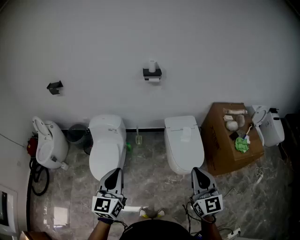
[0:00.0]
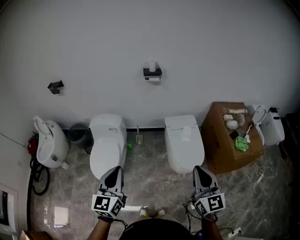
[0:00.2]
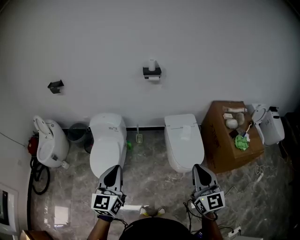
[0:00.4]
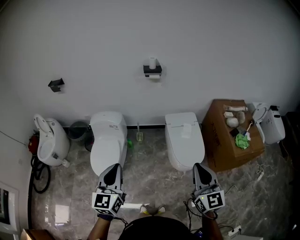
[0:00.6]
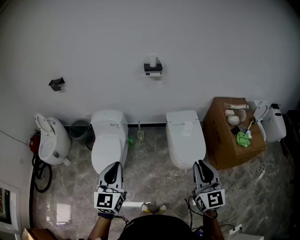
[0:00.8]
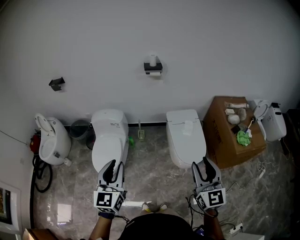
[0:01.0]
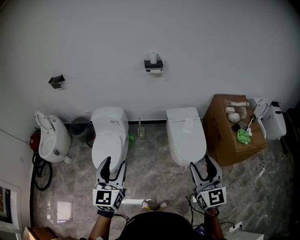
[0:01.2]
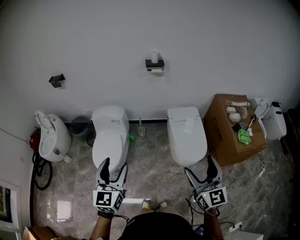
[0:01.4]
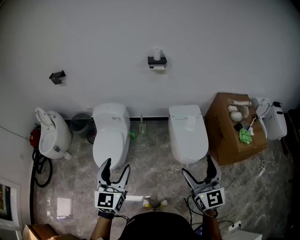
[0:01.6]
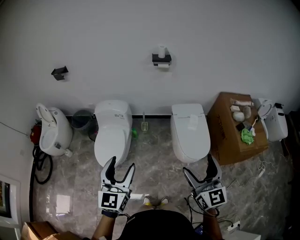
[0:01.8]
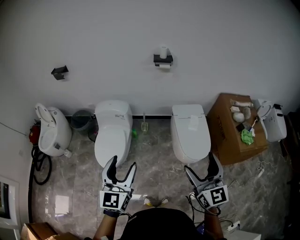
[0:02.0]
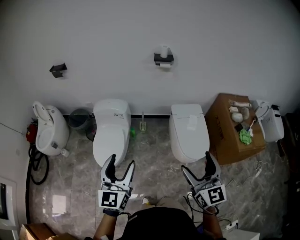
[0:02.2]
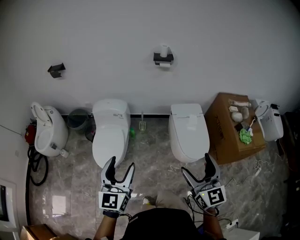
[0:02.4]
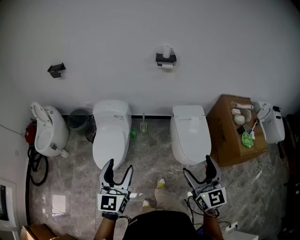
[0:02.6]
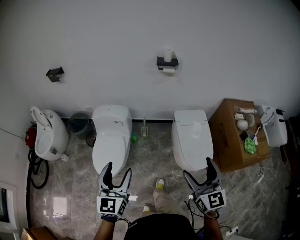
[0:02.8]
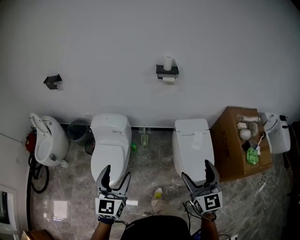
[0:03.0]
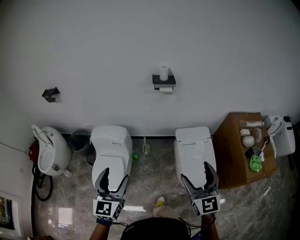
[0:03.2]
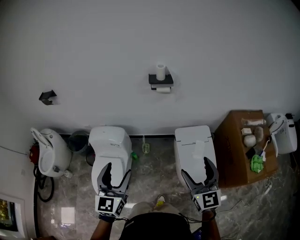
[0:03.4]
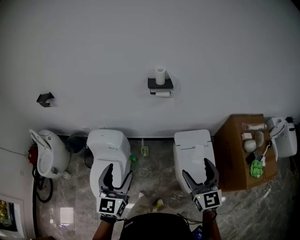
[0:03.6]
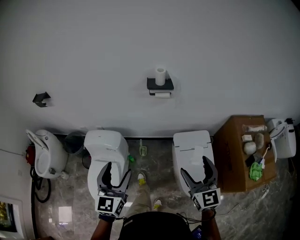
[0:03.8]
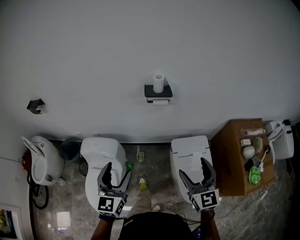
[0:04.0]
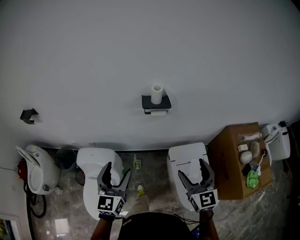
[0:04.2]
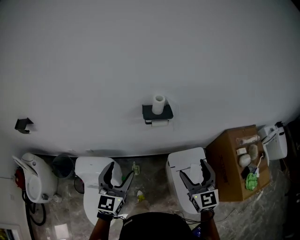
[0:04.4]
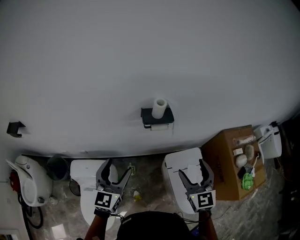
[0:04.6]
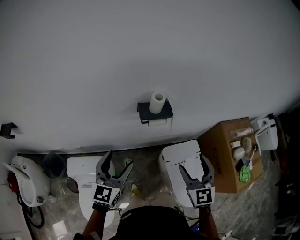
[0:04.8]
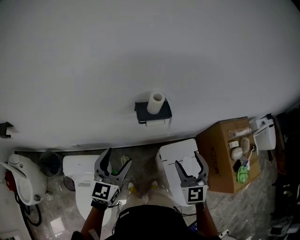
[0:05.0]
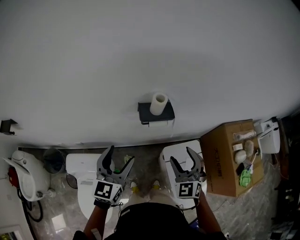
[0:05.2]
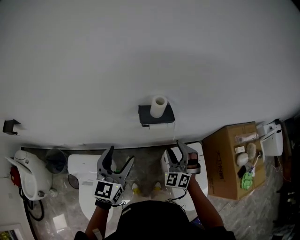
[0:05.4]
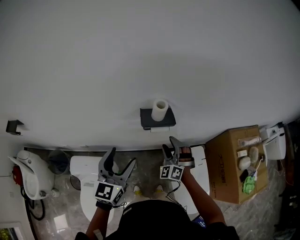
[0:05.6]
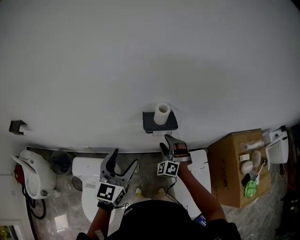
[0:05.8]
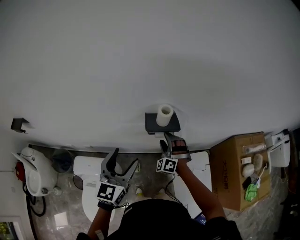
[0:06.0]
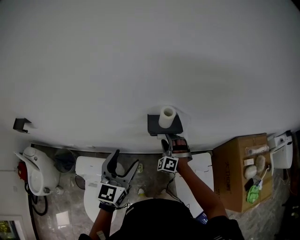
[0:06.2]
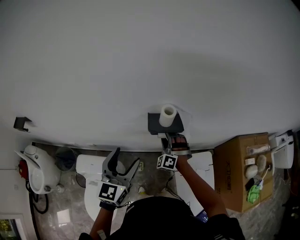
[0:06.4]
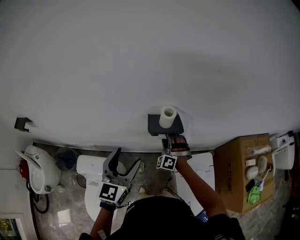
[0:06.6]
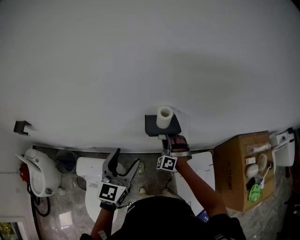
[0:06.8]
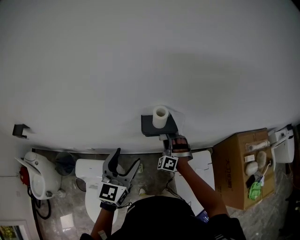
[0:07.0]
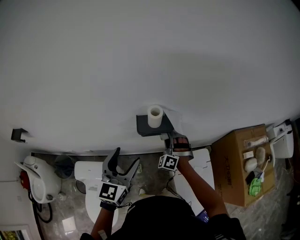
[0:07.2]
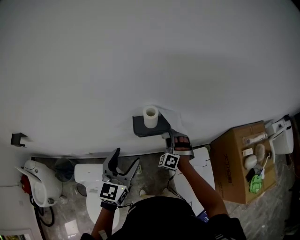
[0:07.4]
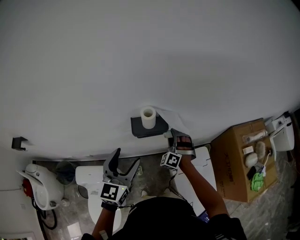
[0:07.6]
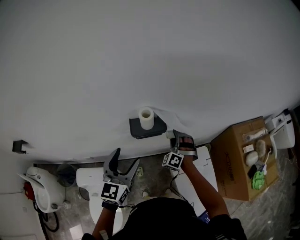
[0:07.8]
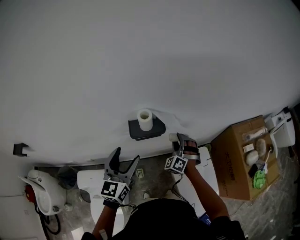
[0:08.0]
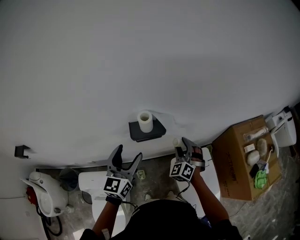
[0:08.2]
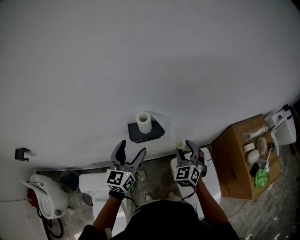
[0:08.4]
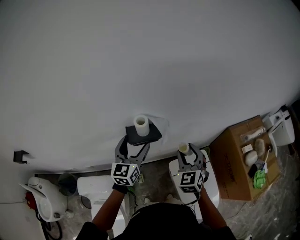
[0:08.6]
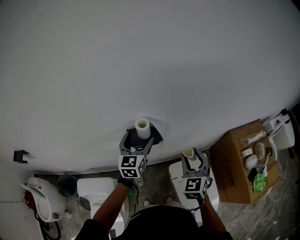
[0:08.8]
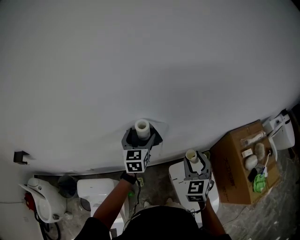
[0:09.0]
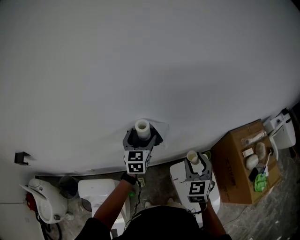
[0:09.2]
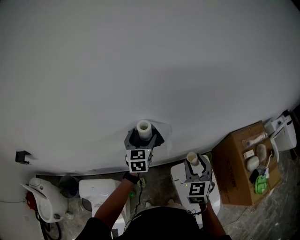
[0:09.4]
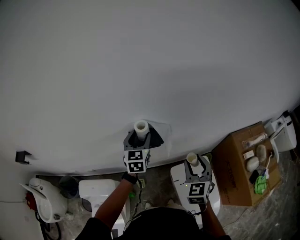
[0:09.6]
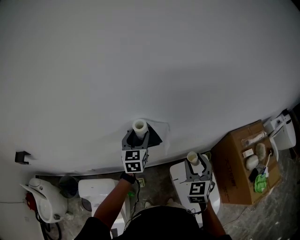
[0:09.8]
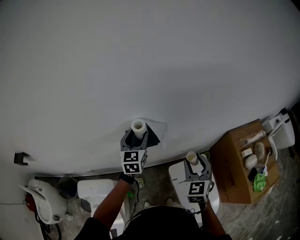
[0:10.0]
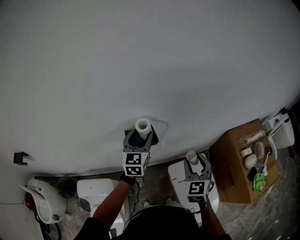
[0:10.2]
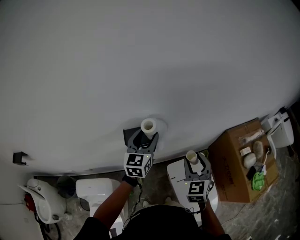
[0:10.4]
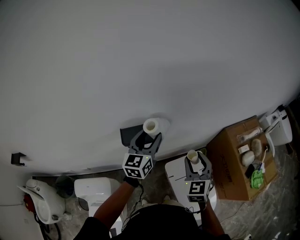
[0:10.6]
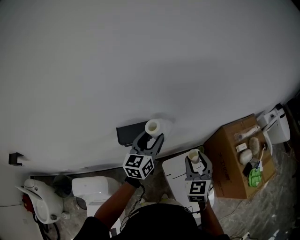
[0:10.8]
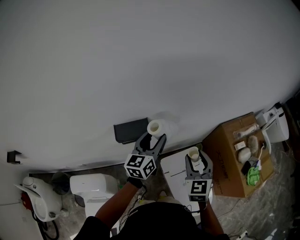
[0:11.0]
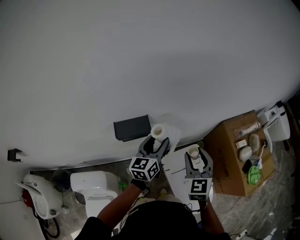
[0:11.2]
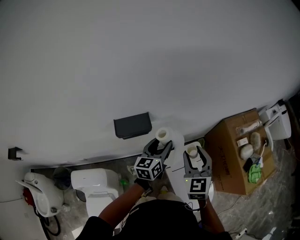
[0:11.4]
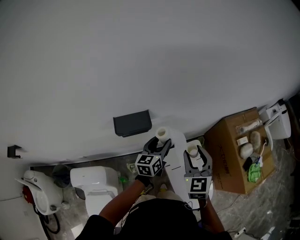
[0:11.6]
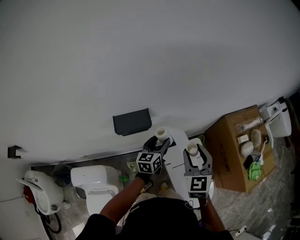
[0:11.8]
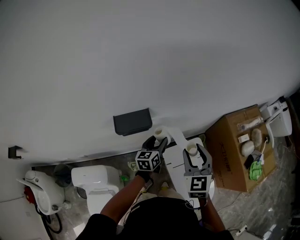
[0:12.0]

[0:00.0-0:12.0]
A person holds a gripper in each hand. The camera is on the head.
0:00.0 to 0:01.6: The left gripper opens its fingers, while the right gripper opens up.
0:01.6 to 0:03.0: The grippers both shift forward by about 15 cm.
0:03.0 to 0:04.4: Both grippers travel together forward, approximately 40 cm.
0:04.4 to 0:06.0: The left gripper heads forward, covering approximately 15 cm. The right gripper moves forward, downward and to the left, some 35 cm, and rotates around the line of its fingers by about 60 degrees, counterclockwise from behind.
0:06.0 to 0:07.6: The right gripper heads to the right, covering roughly 10 cm. The left gripper travels to the right by some 5 cm.
0:07.6 to 0:09.0: The left gripper goes about 15 cm forward; the right gripper goes about 20 cm upward, to the right and backward, and twists about 50 degrees clockwise, seen from behind.
0:09.0 to 0:10.4: The left gripper shifts about 5 cm to the right, and closes up.
0:10.4 to 0:12.0: The left gripper shifts roughly 20 cm downward and to the right, and rotates approximately 30 degrees.

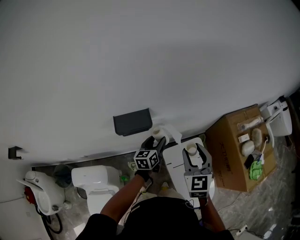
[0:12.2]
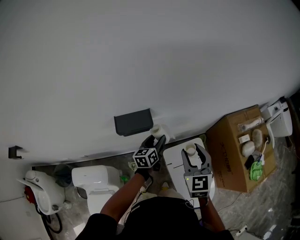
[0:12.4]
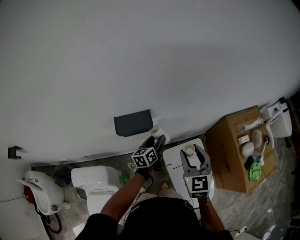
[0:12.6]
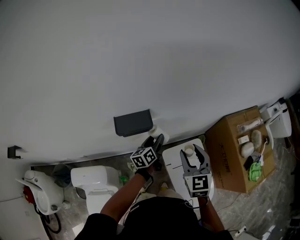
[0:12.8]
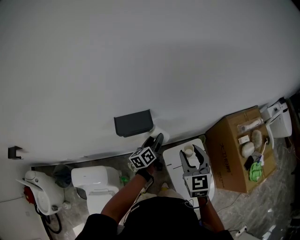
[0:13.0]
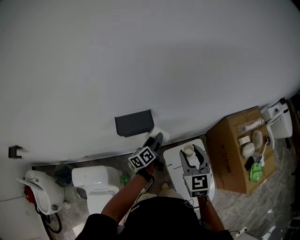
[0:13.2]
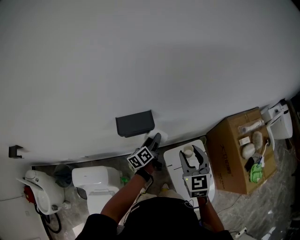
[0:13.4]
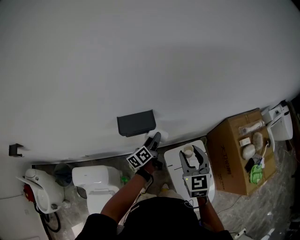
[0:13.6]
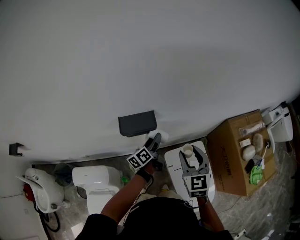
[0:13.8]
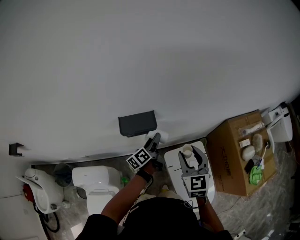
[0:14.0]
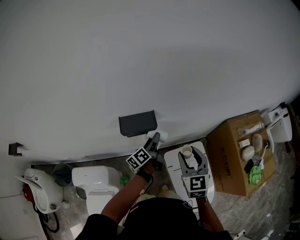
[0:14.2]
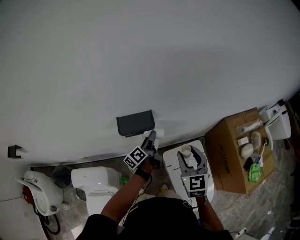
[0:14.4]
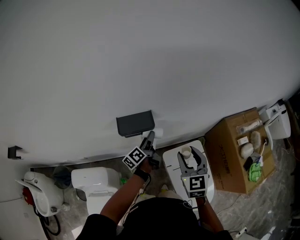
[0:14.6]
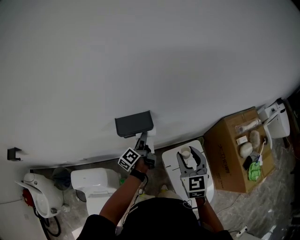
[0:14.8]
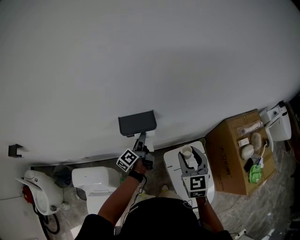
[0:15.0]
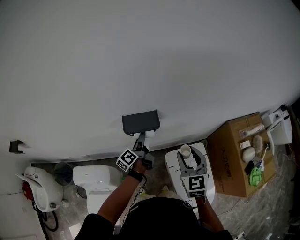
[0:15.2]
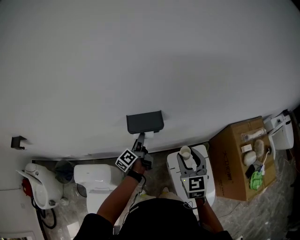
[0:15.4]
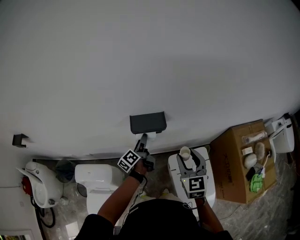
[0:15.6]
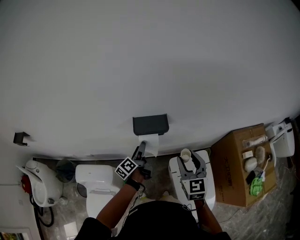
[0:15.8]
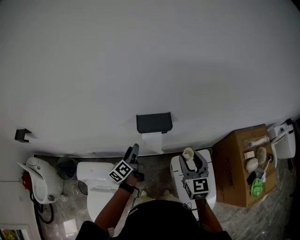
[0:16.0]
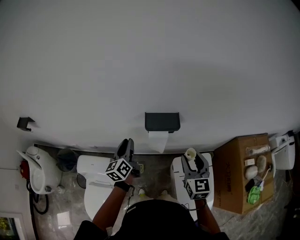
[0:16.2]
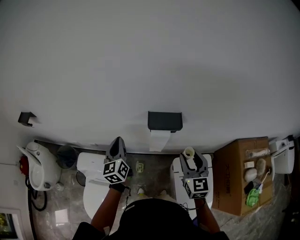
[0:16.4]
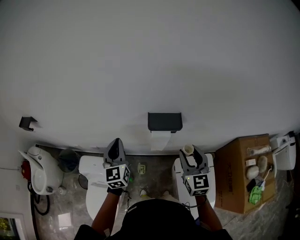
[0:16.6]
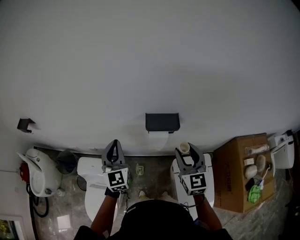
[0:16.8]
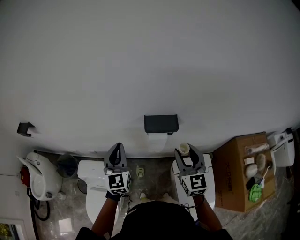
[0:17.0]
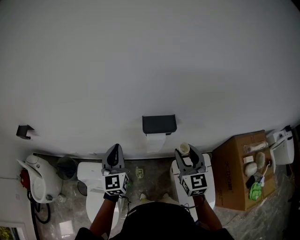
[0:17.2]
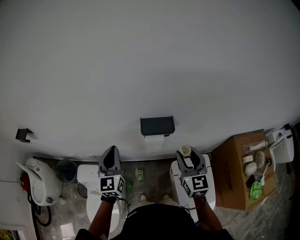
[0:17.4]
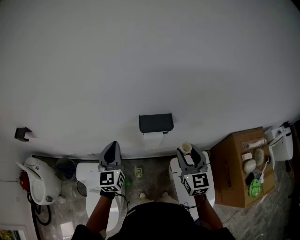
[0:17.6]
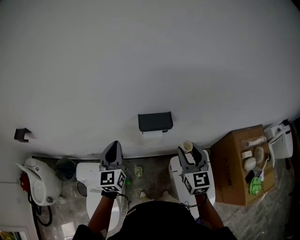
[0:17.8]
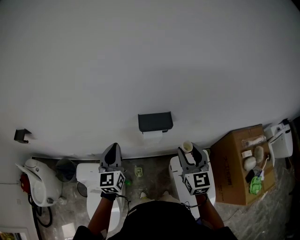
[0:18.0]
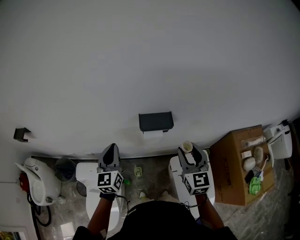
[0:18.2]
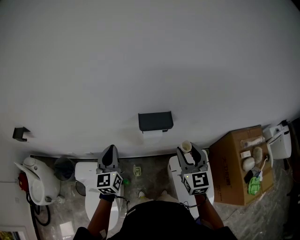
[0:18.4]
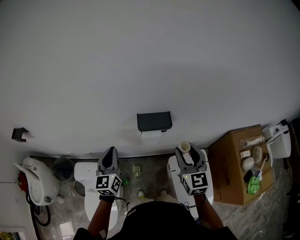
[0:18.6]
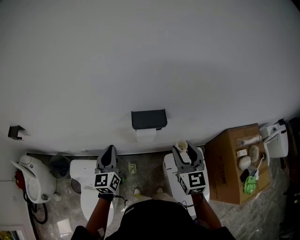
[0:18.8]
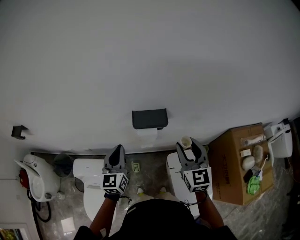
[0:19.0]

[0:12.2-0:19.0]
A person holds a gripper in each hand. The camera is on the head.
0:12.2 to 0:13.6: The left gripper rotates approximately 30 degrees.
0:13.6 to 0:15.0: The left gripper heads to the left, covering about 5 cm.
0:15.0 to 0:16.2: The right gripper shifts roughly 5 cm to the left. Meanwhile the left gripper travels to the left, backward and upward by about 20 cm, and swivels approximately 40 degrees.
0:16.2 to 0:17.6: The left gripper heads upward, covering some 10 cm, and swivels approximately 40 degrees. Meanwhile the right gripper changes place by roughly 5 cm.
0:17.6 to 0:19.0: The left gripper travels to the right by roughly 5 cm.

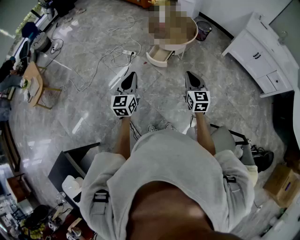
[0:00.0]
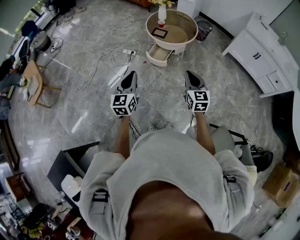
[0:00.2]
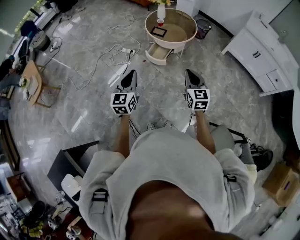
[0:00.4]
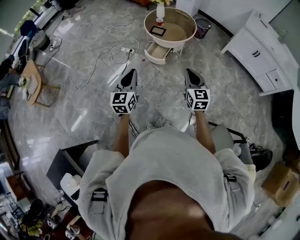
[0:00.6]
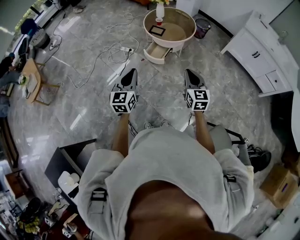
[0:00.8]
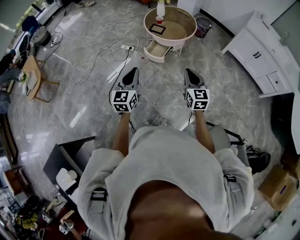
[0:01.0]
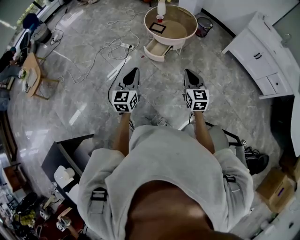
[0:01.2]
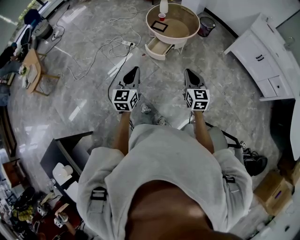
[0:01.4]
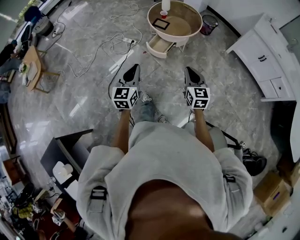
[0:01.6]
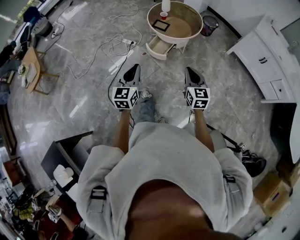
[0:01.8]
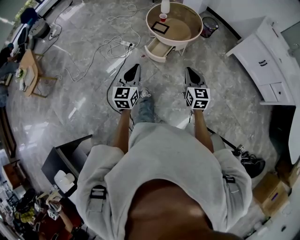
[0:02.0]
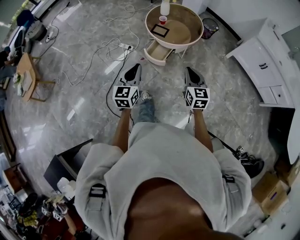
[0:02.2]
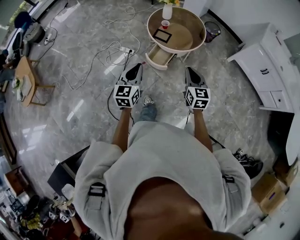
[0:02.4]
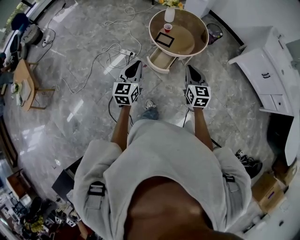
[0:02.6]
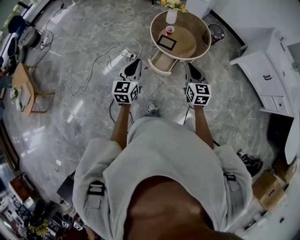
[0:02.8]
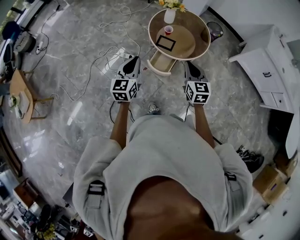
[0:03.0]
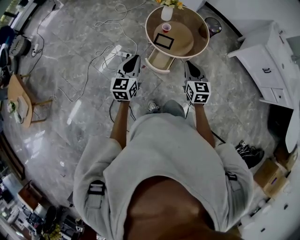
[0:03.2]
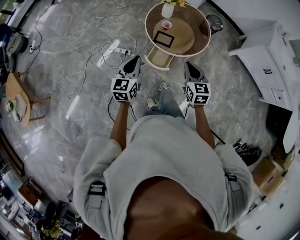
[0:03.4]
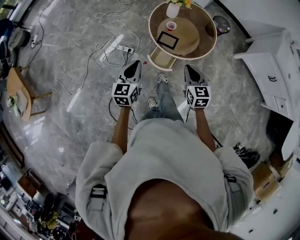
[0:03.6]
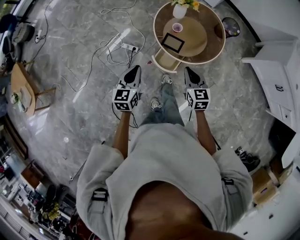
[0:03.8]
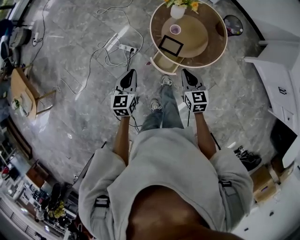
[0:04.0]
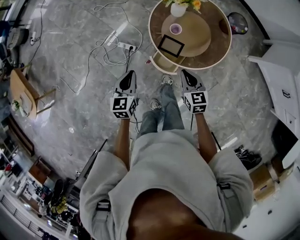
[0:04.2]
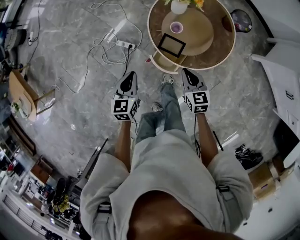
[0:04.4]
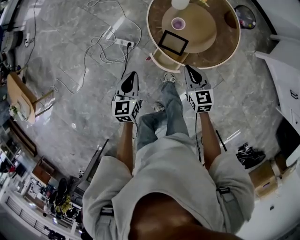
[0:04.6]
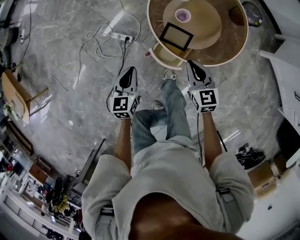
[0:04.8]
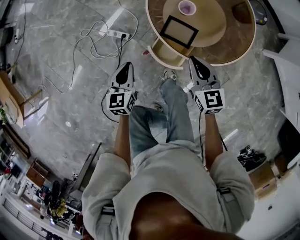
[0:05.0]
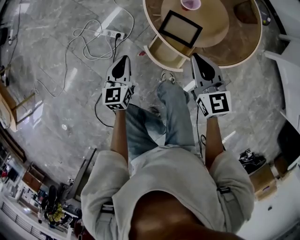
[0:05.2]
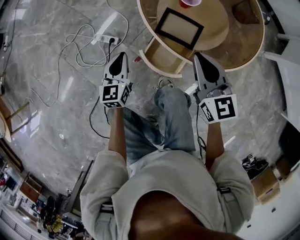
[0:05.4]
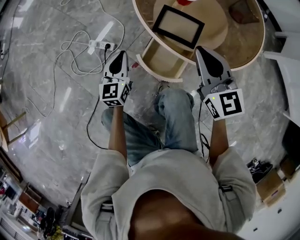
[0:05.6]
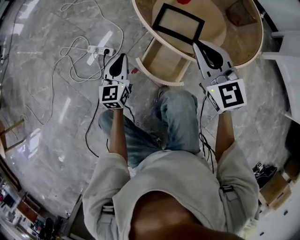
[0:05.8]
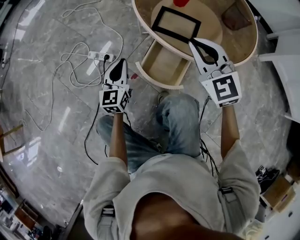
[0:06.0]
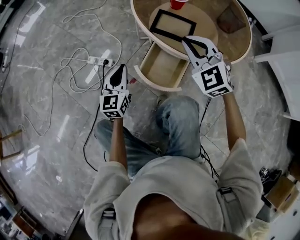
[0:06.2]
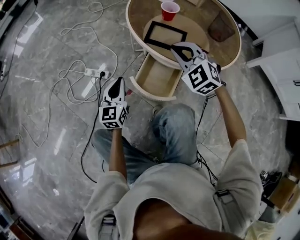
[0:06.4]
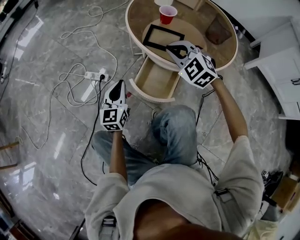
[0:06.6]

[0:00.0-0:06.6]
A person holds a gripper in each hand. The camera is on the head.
0:00.0 to 0:01.6: Both grippers travel together to the right, about 5 cm.
0:01.6 to 0:03.2: The pair of grippers is taken forward, about 40 cm.
0:03.2 to 0:05.0: Both grippers move downward and forward, some 40 cm.
0:05.0 to 0:06.6: Both grippers move downward, approximately 15 cm. The right gripper twists some 50 degrees counterclockwise, seen from behind; the left gripper rotates about 20 degrees.
